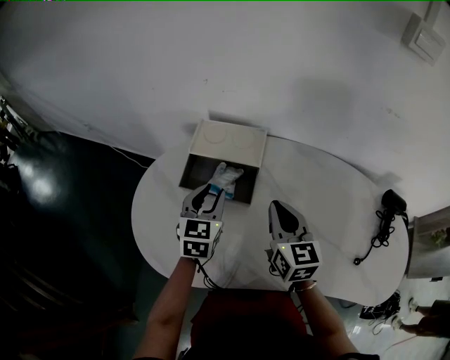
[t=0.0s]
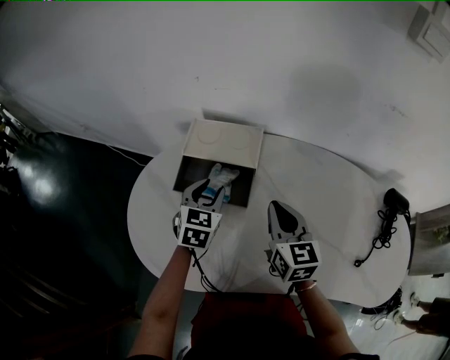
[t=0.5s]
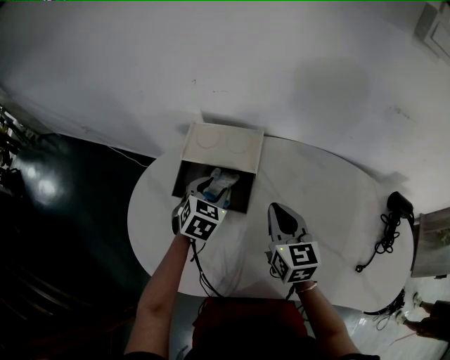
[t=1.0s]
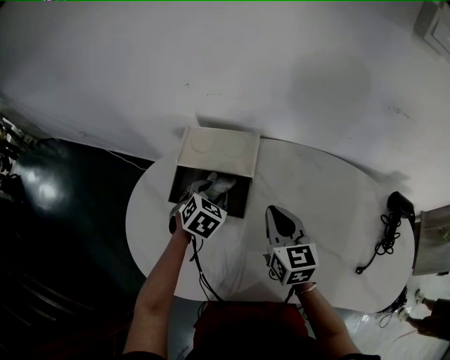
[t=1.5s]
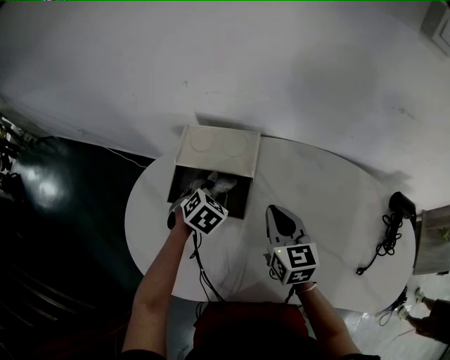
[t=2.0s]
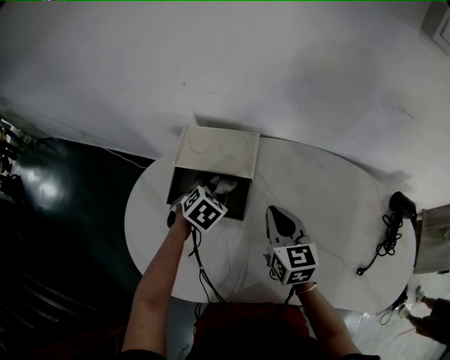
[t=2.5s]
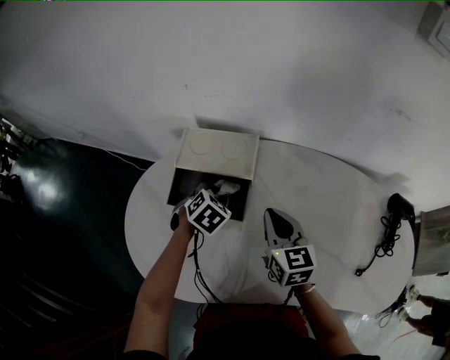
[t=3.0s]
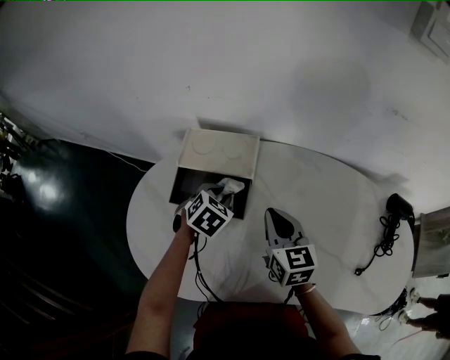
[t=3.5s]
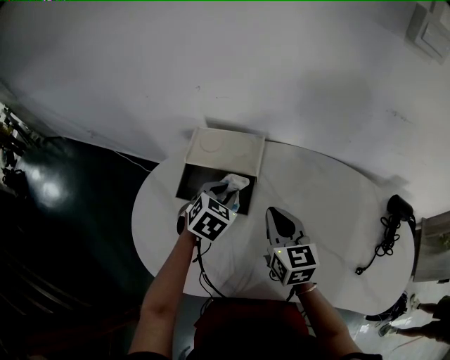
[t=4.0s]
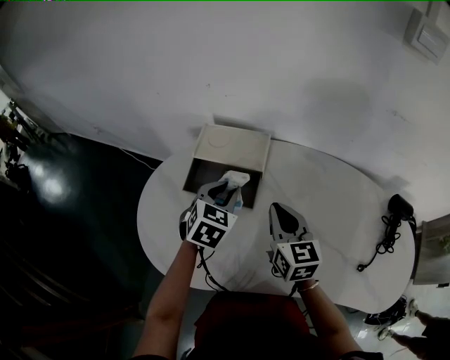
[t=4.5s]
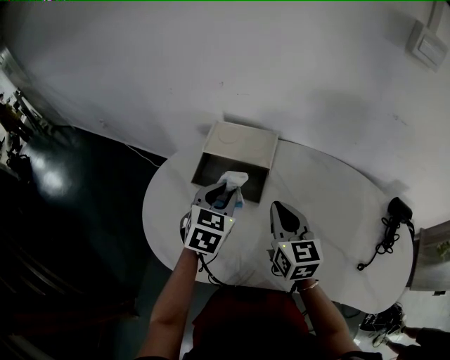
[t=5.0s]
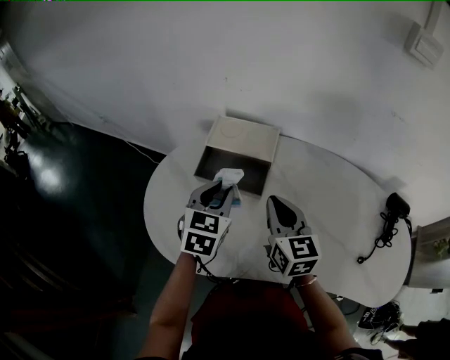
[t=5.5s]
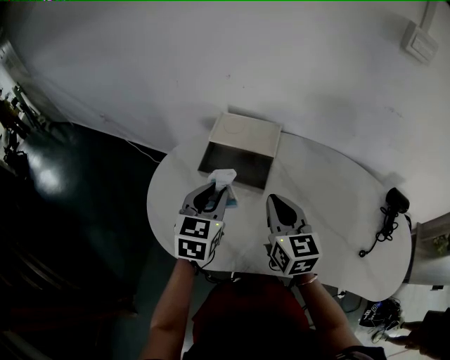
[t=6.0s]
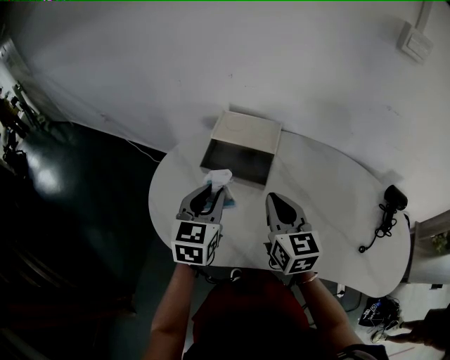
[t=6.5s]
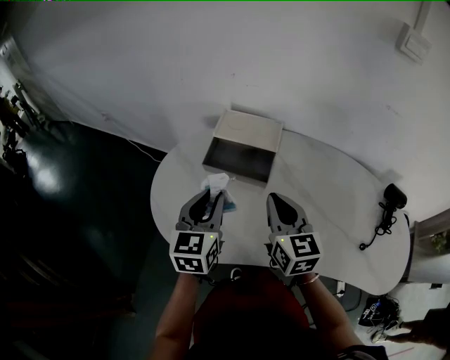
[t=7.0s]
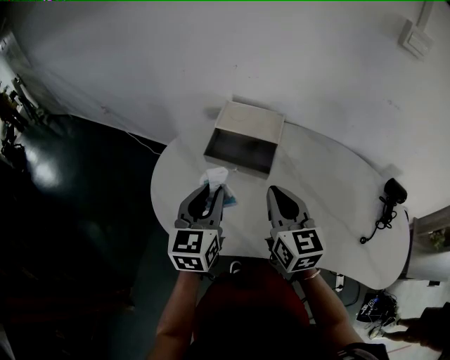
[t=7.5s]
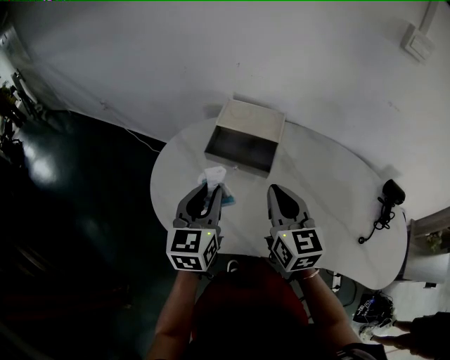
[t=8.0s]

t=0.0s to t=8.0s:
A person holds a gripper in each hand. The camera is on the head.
t=0.0s to t=2.0s: The right gripper is displaced downward by some 5 cm, while the left gripper moves downward and forward, about 10 cm, and tilts its fingers about 40 degrees downward.
t=2.0s to t=4.0s: The left gripper goes some 5 cm upward.
t=4.0s to t=6.0s: The left gripper shifts roughly 15 cm backward, upward and to the left, and turns by some 30 degrees. The right gripper is displaced backward and to the left by roughly 10 cm.
t=6.0s to t=8.0s: The right gripper changes place by approximately 5 cm. Meanwhile the left gripper shifts some 5 cm backward.

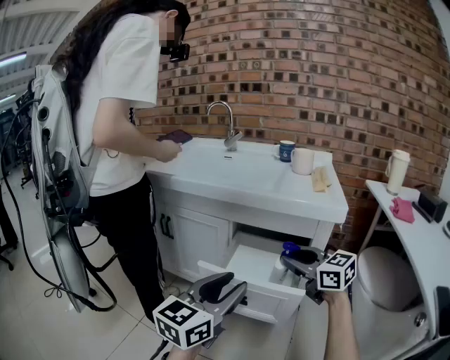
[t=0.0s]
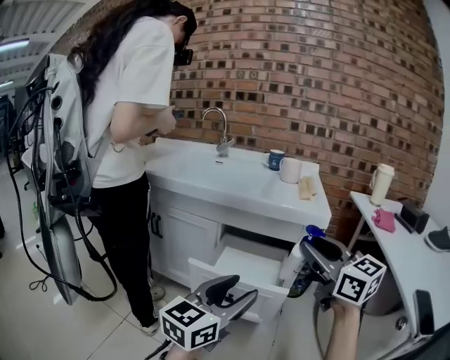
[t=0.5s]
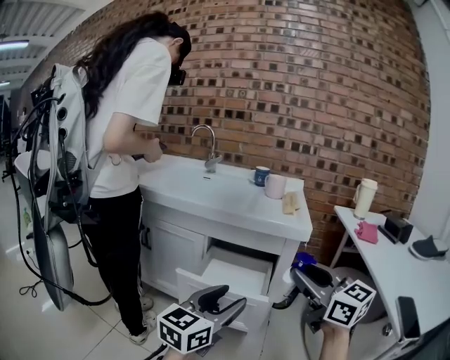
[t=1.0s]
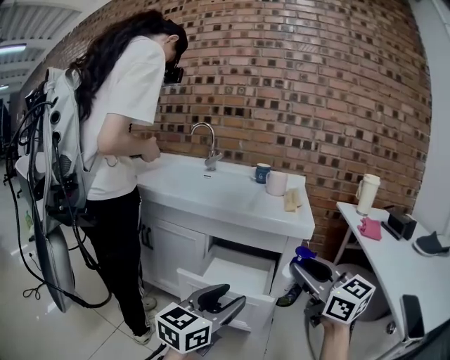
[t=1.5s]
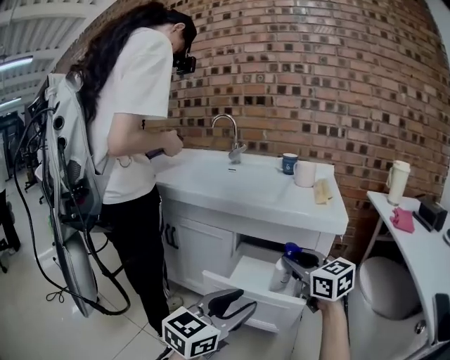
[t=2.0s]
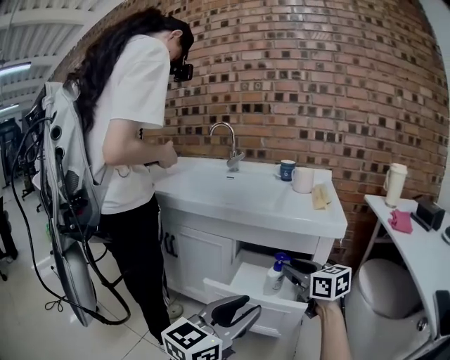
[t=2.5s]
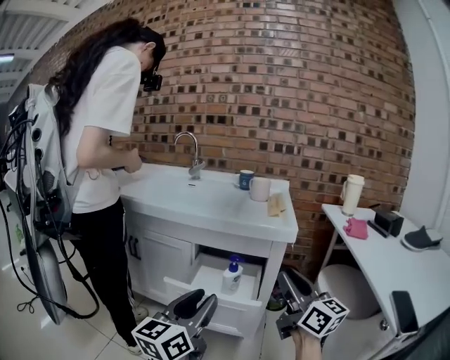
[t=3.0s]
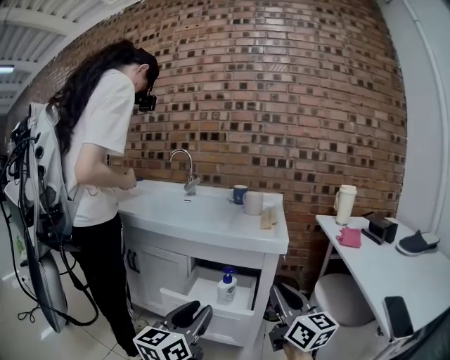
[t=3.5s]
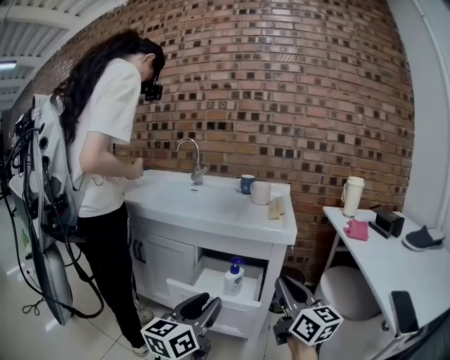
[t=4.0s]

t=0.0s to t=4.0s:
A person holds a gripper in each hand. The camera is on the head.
t=0.0s to t=2.0s: The right gripper reaches about 15 cm backward, then returns.
t=2.0s to t=4.0s: The right gripper moves backward and to the right, some 15 cm, rotates about 30 degrees, and closes its fingers.

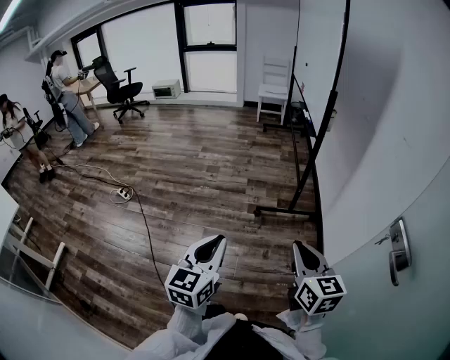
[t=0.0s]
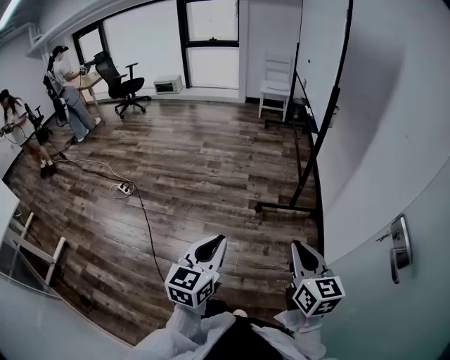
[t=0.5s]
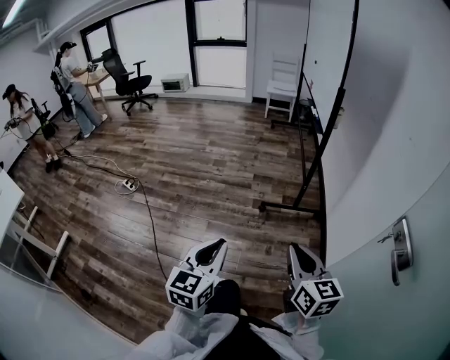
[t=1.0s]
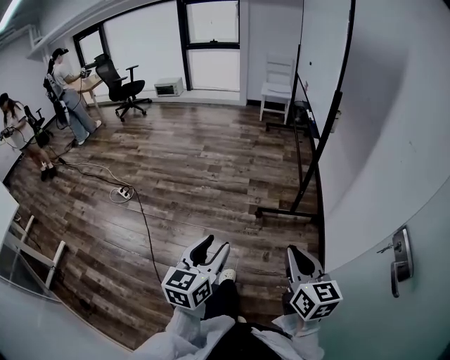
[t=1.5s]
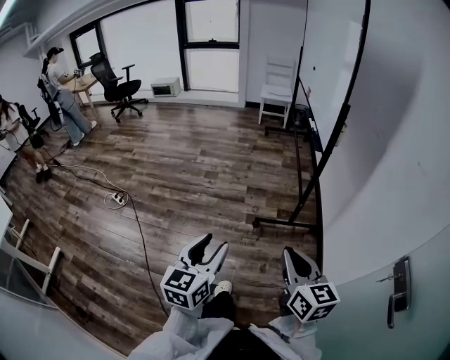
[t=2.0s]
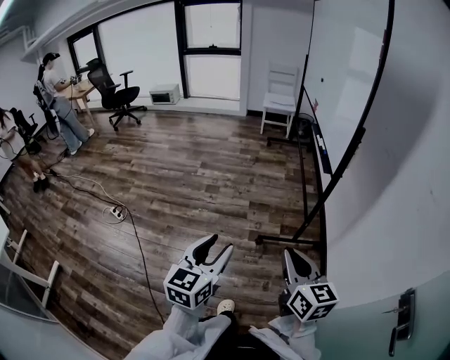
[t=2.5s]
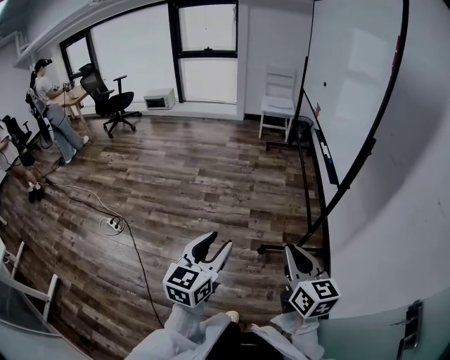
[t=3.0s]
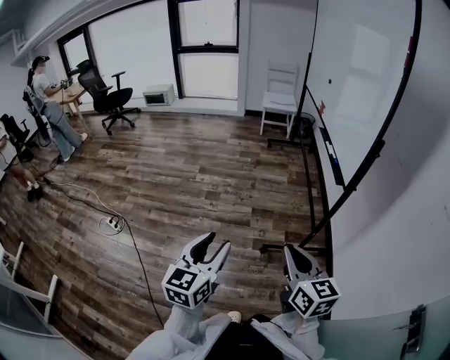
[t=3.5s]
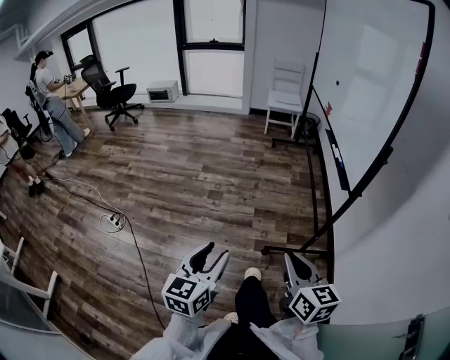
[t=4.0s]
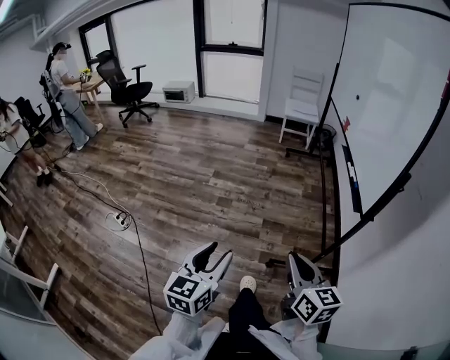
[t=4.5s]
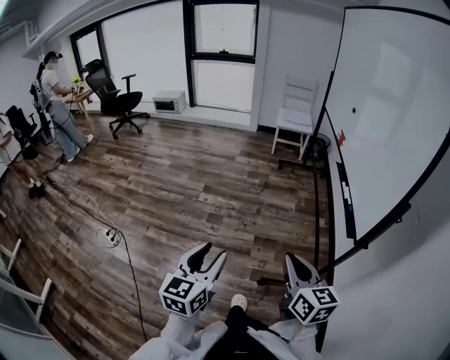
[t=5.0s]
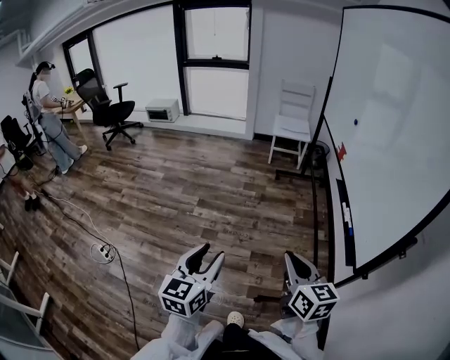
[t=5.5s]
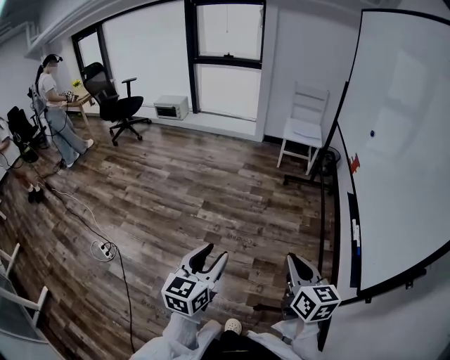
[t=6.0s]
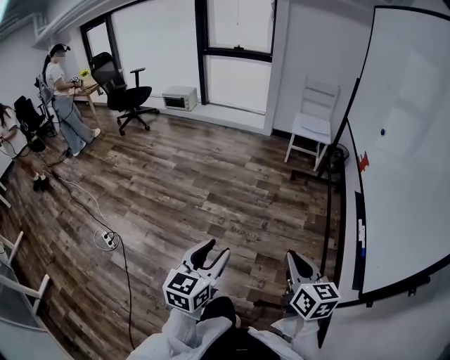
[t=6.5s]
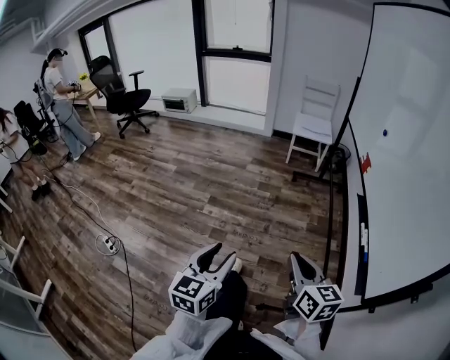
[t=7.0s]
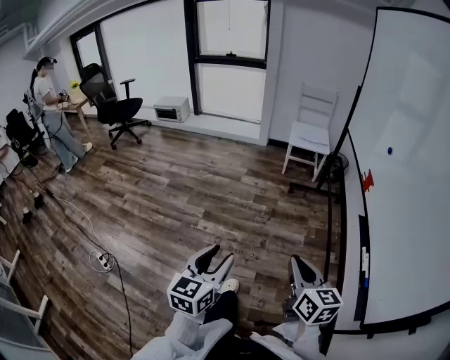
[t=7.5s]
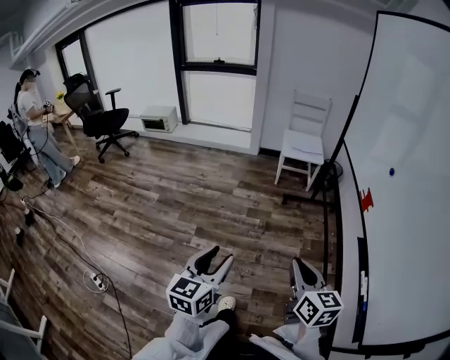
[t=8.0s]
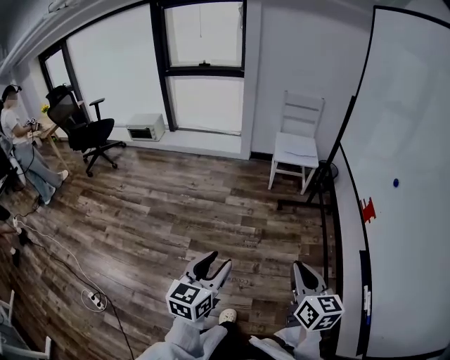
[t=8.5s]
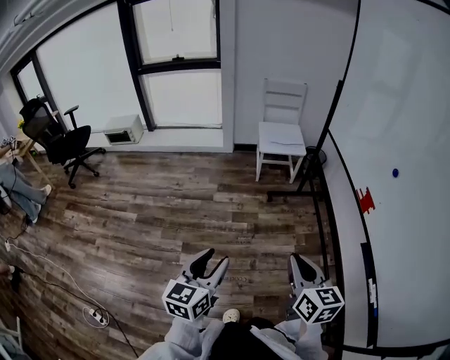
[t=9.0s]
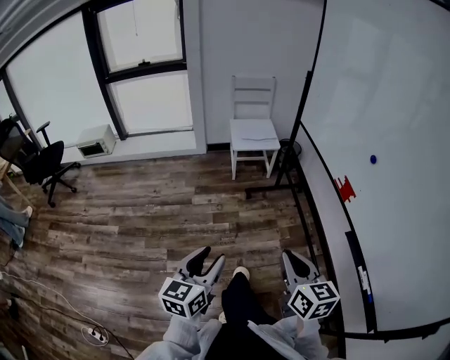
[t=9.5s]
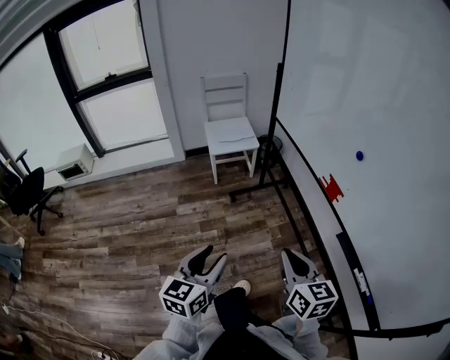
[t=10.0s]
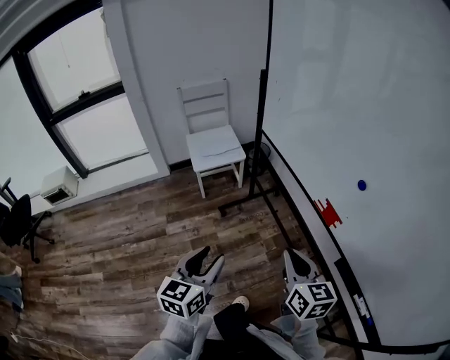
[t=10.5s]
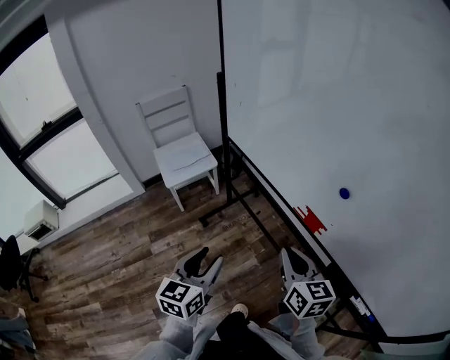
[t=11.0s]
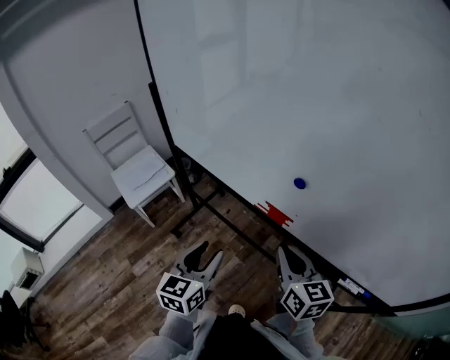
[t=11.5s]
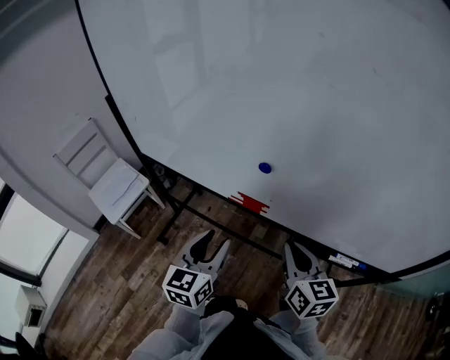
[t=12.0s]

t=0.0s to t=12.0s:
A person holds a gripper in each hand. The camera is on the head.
t=0.0s to t=2.0s: Both grippers move forward, approximately 10 cm. The left gripper opens its fingers.
t=2.0s to t=4.0s: The grippers both shift forward and to the left by some 25 cm.
t=4.0s to t=6.0s: Both grippers travel together forward, about 40 cm.
t=6.0s to t=8.0s: Both grippers move forward, approximately 25 cm.
t=8.0s to t=10.0s: The grippers both shift forward by approximately 25 cm. The left gripper turns by approximately 30 degrees. The right gripper changes its angle by some 20 degrees.
t=10.0s to t=12.0s: The left gripper moves some 35 cm, and turns by some 40 degrees. The right gripper changes place by about 25 cm, and swivels about 50 degrees.

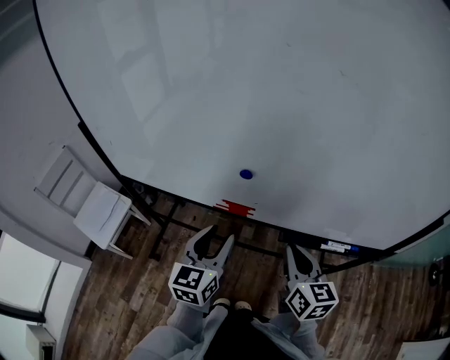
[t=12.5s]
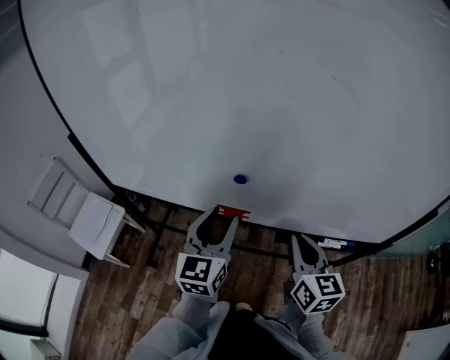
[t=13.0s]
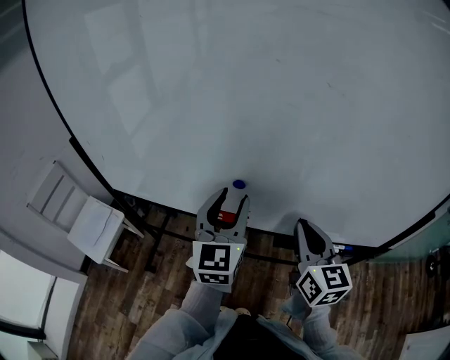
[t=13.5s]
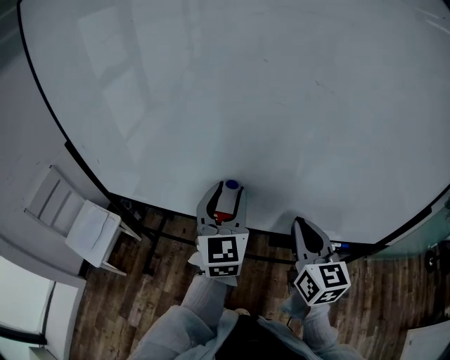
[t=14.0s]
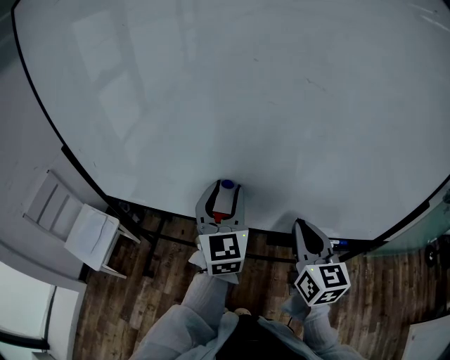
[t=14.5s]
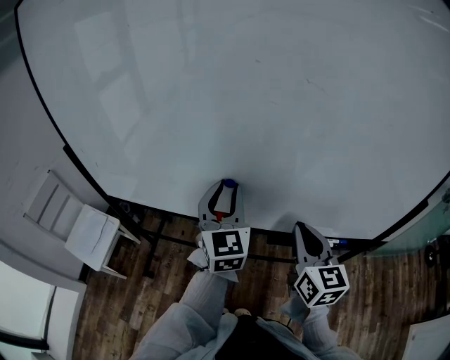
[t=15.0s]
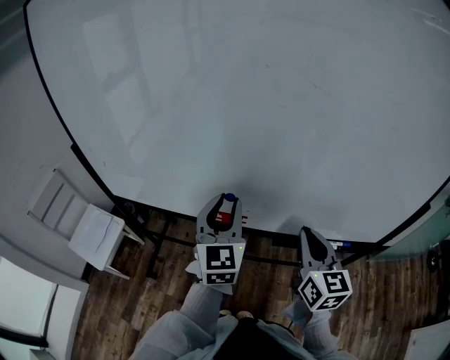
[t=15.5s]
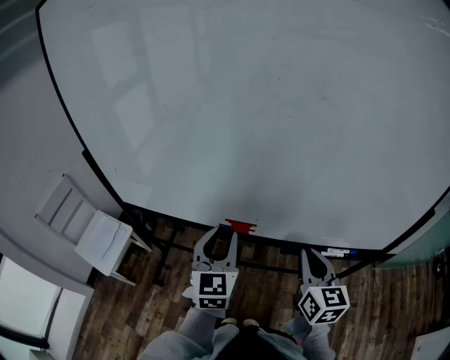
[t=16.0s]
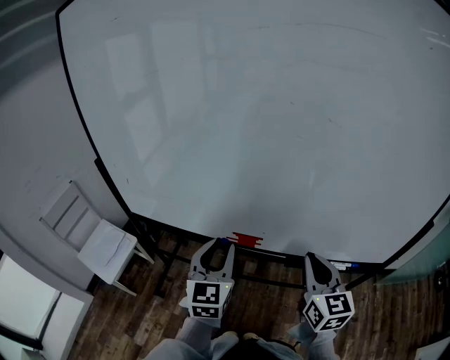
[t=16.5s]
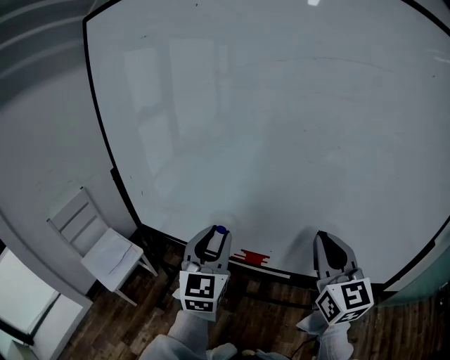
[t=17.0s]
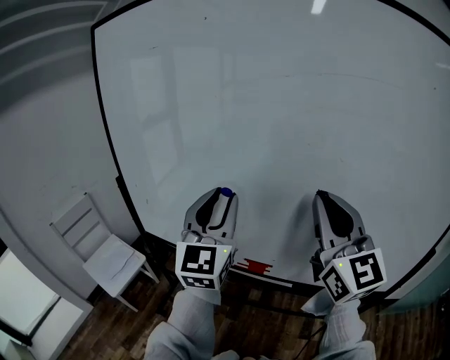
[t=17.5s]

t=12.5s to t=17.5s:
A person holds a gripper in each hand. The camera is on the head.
t=12.5s to t=15.0s: The right gripper is displaced upward by some 10 cm. Meanwhile the left gripper heads upward and forward, covering some 15 cm, and swivels approximately 20 degrees.
t=15.0s to t=17.5s: Both grippers travel together upward and to the left, some 25 cm. The right gripper changes its angle by roughly 30 degrees.
